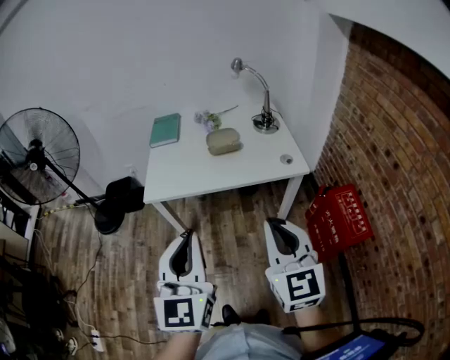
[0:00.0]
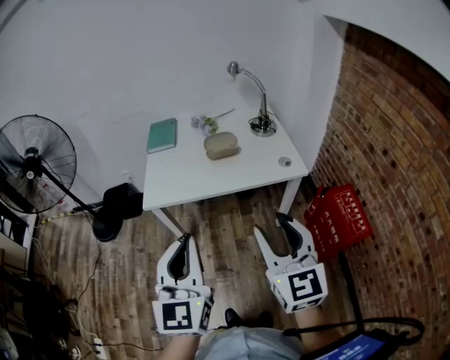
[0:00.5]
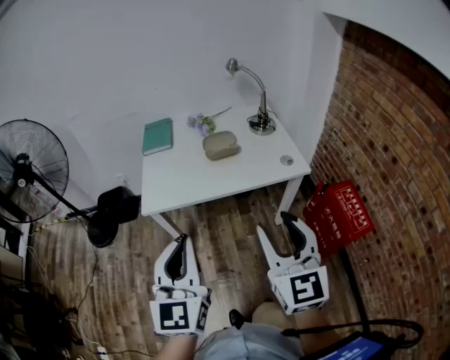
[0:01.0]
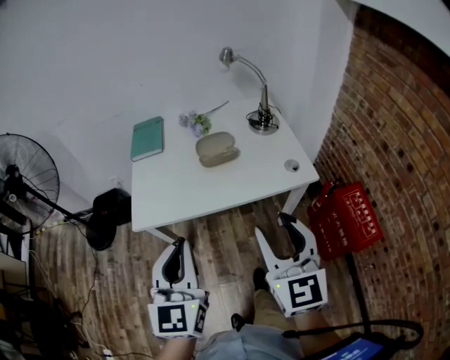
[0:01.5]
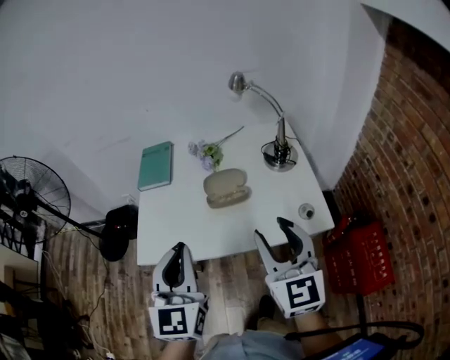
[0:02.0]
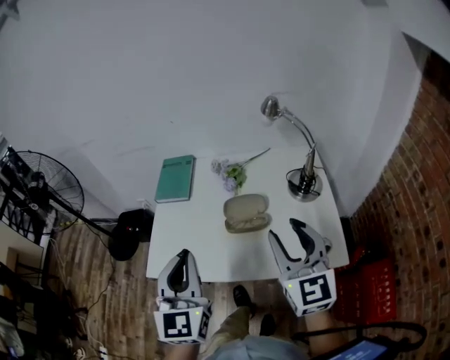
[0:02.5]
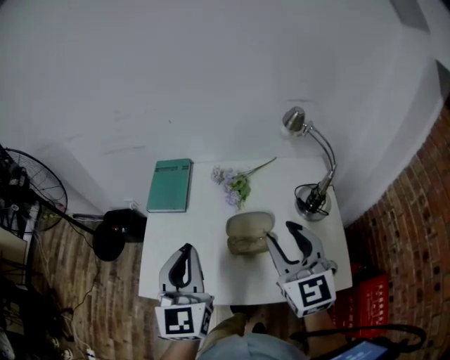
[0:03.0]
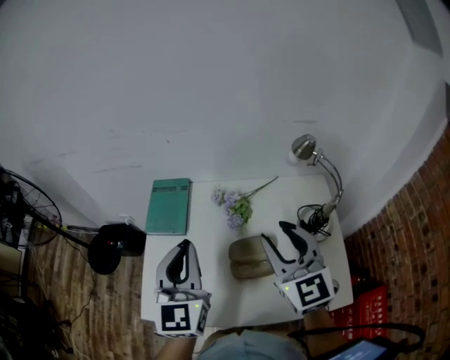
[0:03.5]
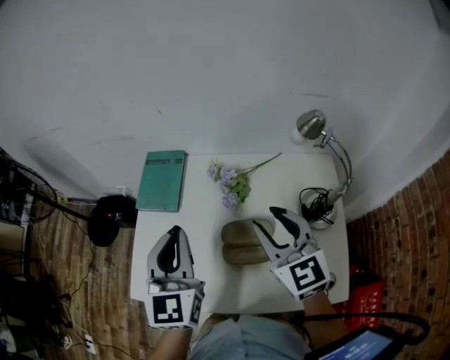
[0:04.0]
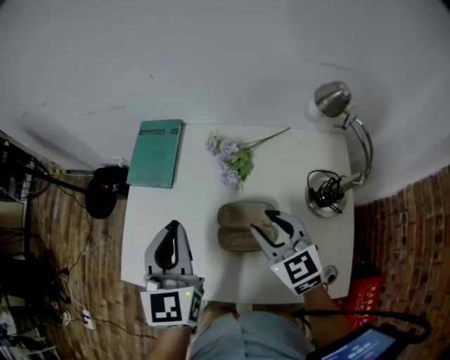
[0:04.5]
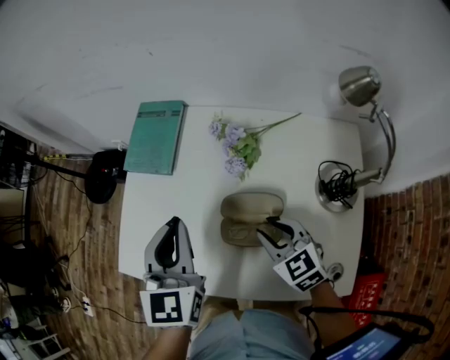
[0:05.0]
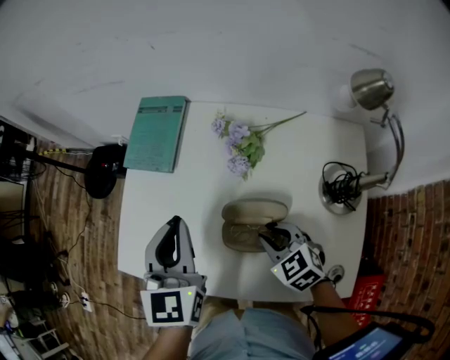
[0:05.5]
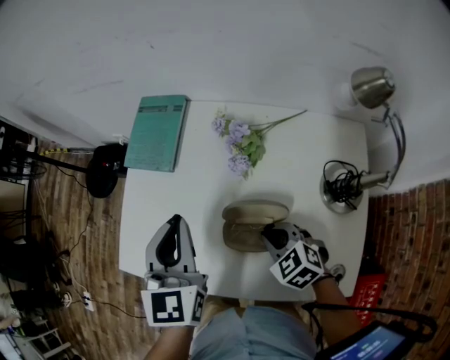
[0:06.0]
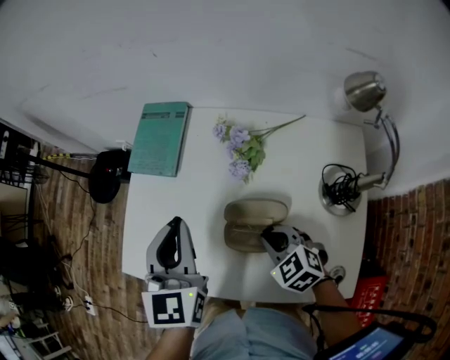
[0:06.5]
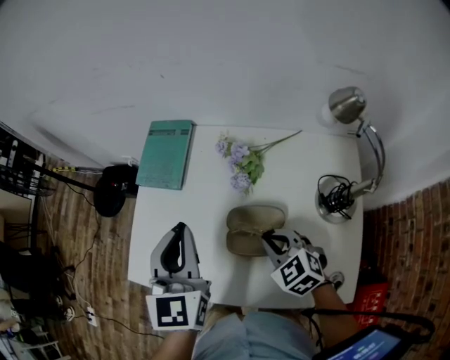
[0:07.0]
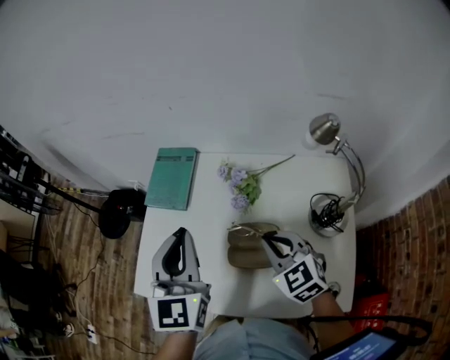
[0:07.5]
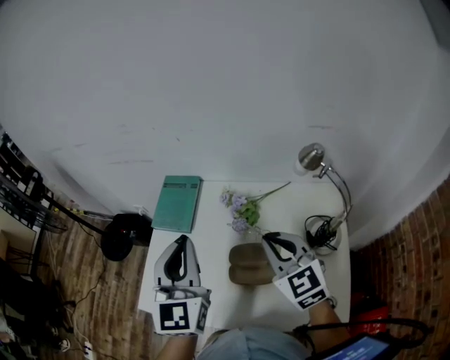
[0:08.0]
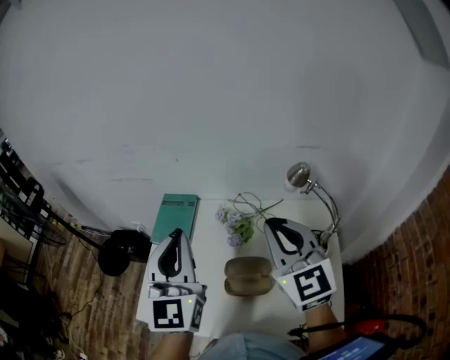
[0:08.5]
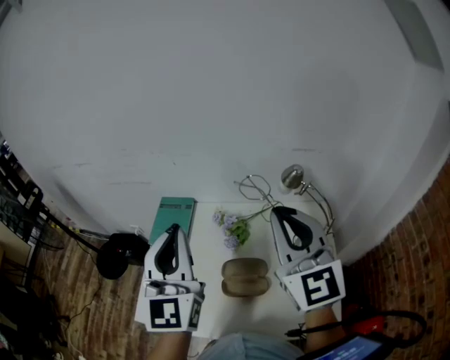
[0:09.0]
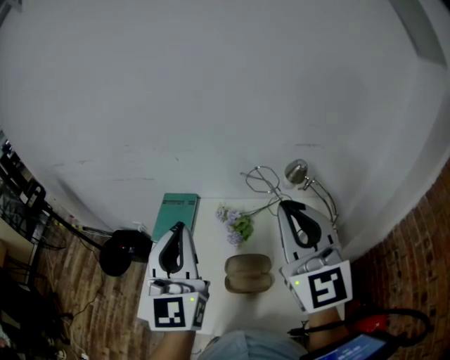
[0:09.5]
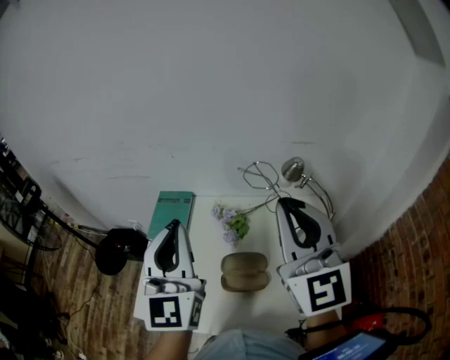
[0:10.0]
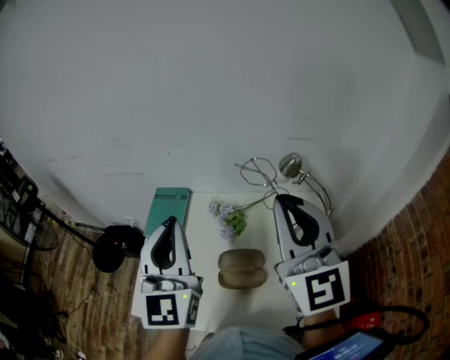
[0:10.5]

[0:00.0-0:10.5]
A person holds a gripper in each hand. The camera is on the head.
0:00.0 to 0:02.0: Both grippers travel together forward, approximately 30 cm. The right gripper opens up.
0:02.0 to 0:04.0: The two grippers go some 30 cm forward. The right gripper swivels approximately 20 degrees.
0:04.0 to 0:06.5: The right gripper is displaced downward by approximately 20 cm, tips its fingers downward by about 40 degrees, and closes. Meanwhile the left gripper moves downward, about 5 cm.
0:06.5 to 0:08.5: The left gripper moves upward, some 20 cm, and changes its angle by approximately 30 degrees; the right gripper is displaced upward by roughly 35 cm, and tilts its fingers approximately 50 degrees upward.
0:08.5 to 0:10.5: The right gripper goes roughly 10 cm upward.

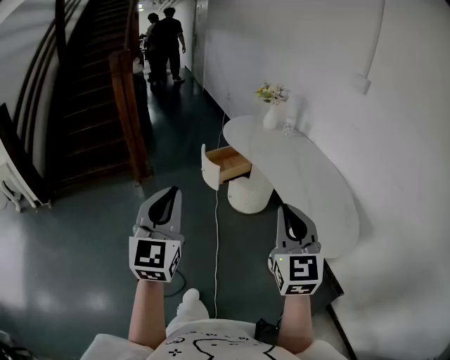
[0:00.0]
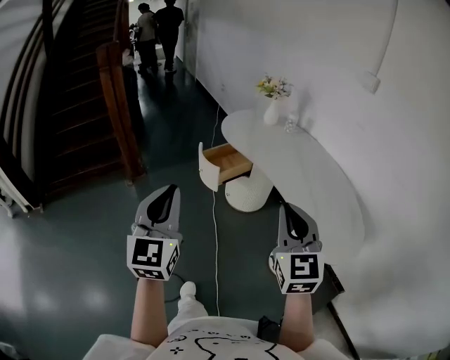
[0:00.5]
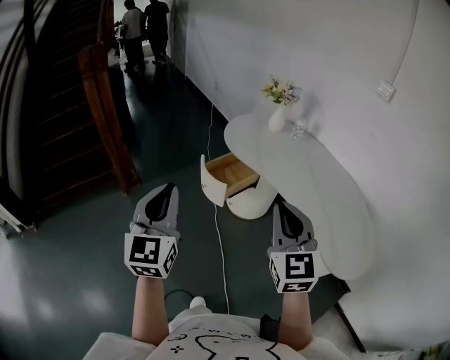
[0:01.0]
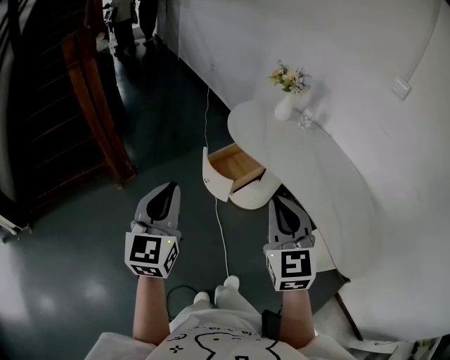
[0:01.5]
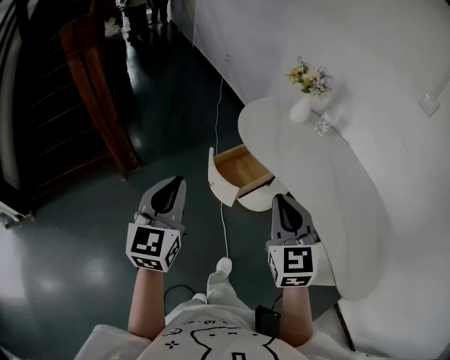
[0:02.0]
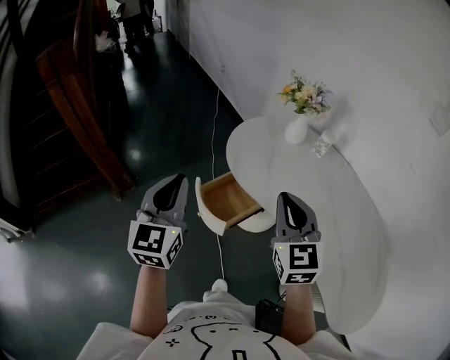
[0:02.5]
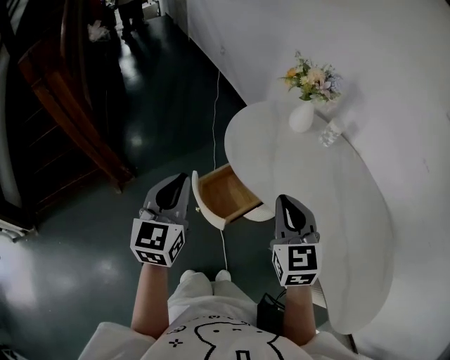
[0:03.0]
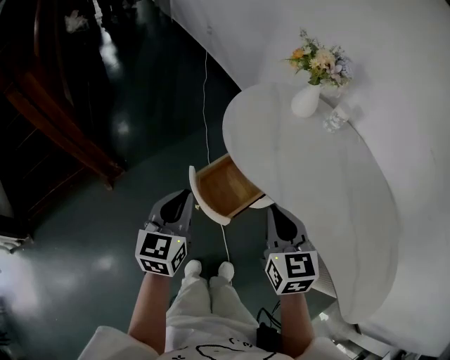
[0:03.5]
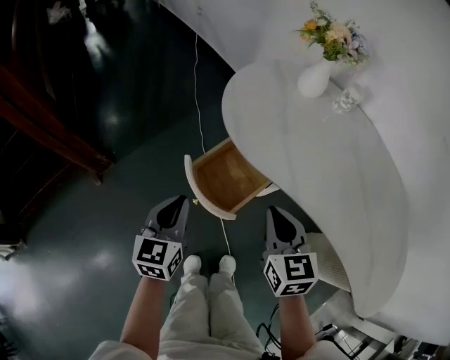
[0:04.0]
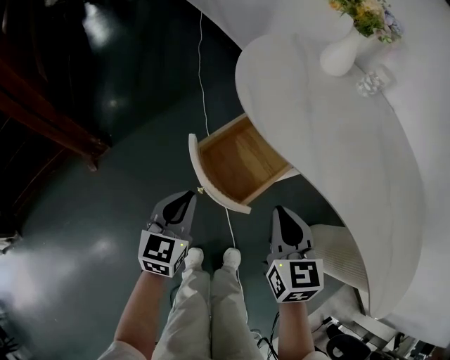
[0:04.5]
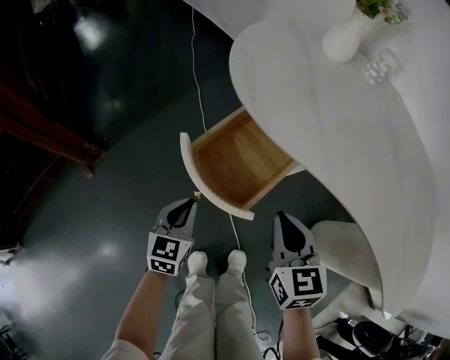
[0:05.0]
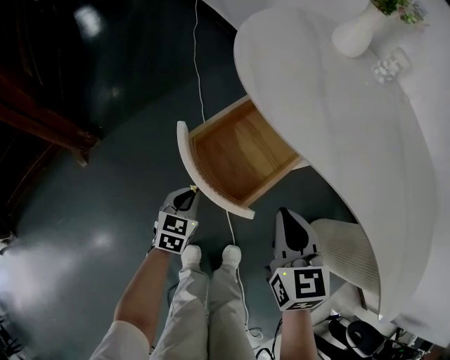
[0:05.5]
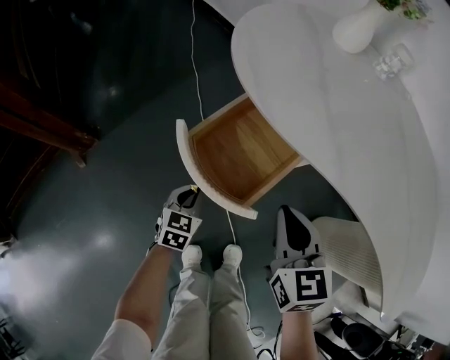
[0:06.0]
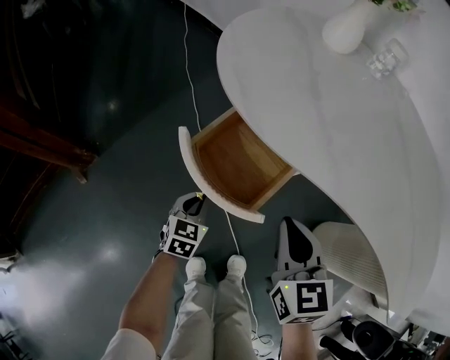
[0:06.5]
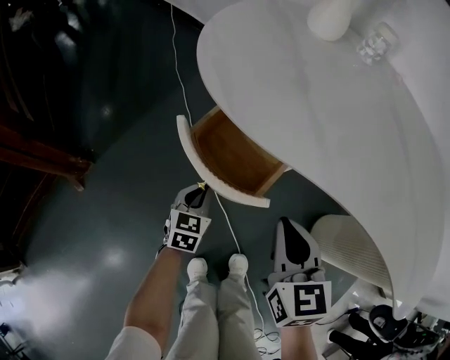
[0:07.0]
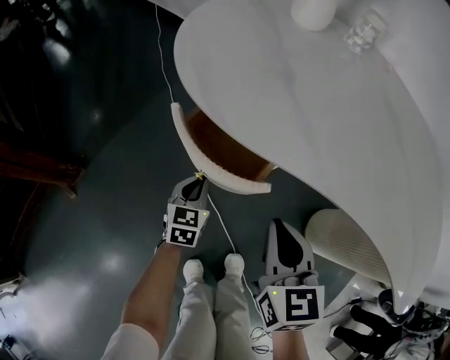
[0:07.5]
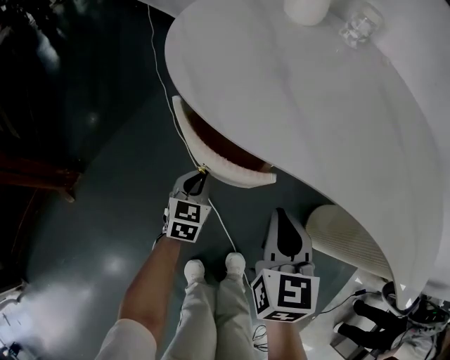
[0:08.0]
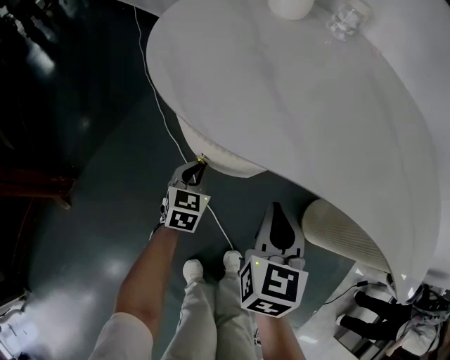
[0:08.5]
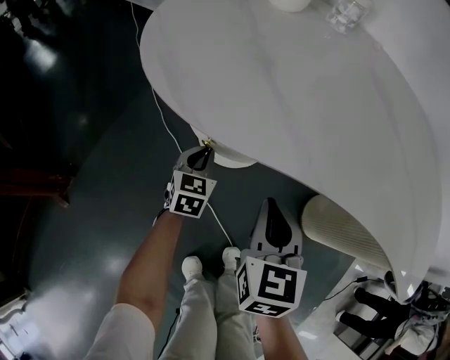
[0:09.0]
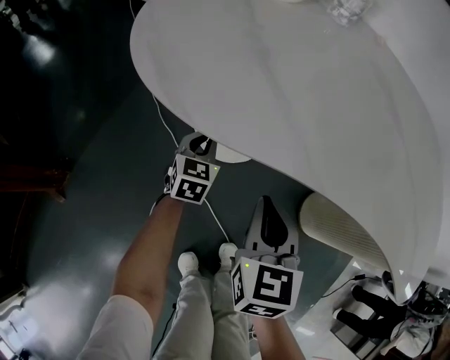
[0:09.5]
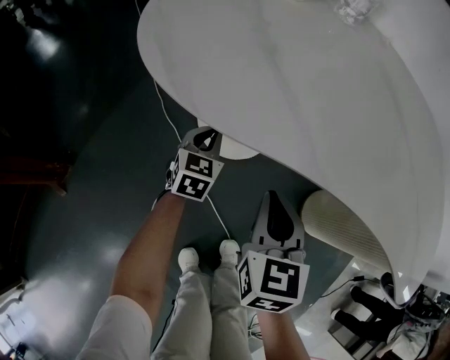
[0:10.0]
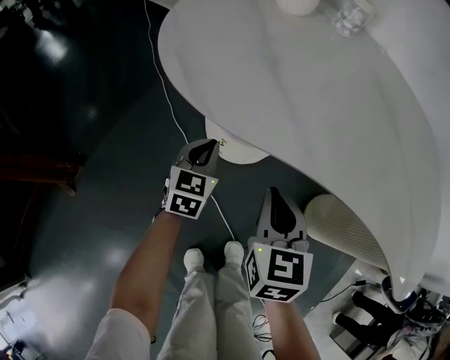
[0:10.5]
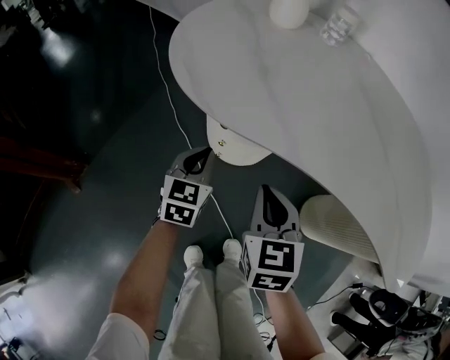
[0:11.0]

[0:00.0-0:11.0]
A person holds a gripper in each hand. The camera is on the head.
0:00.0 to 0:02.0: The two grippers travel together, forward and to the left, some 40 cm.
0:02.0 to 0:03.5: Both grippers travel together forward and downward, roughly 25 cm. The right gripper rotates about 20 degrees.
0:03.5 to 0:05.5: The right gripper goes roughly 25 cm downward; the left gripper travels downward by roughly 40 cm, and rotates about 20 degrees.
0:05.5 to 0:07.5: The left gripper shifts approximately 15 cm forward and to the right.
0:07.5 to 0:09.0: The left gripper moves forward, roughly 10 cm.
0:09.0 to 0:11.0: The left gripper heads upward and backward, covering some 15 cm, while the right gripper shifts by some 5 cm.

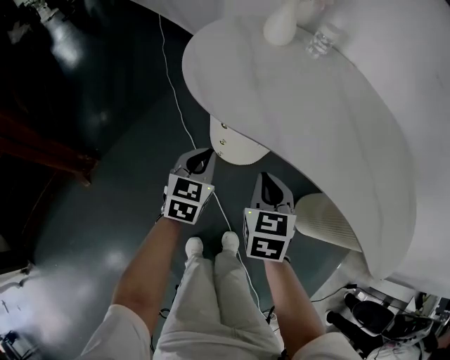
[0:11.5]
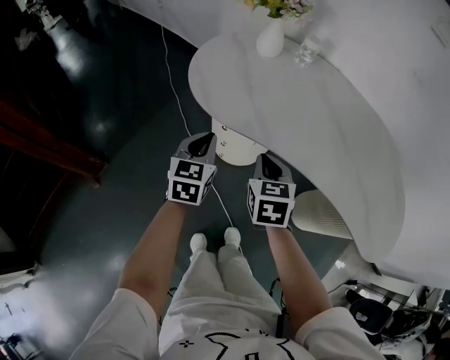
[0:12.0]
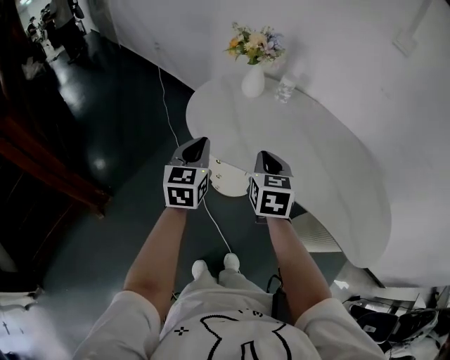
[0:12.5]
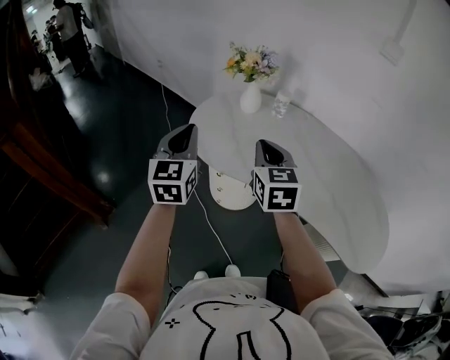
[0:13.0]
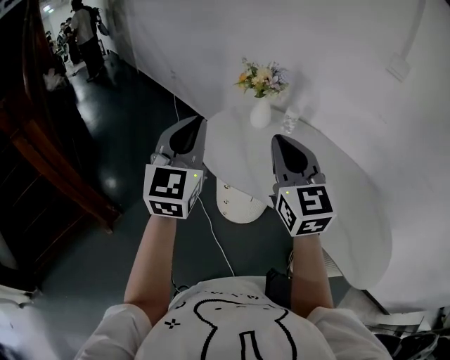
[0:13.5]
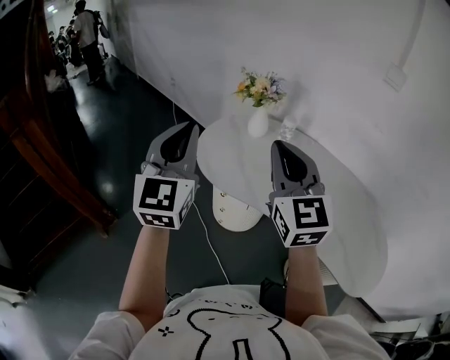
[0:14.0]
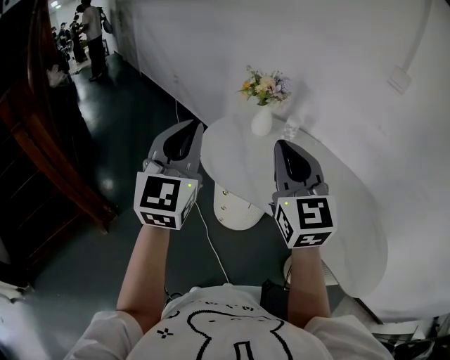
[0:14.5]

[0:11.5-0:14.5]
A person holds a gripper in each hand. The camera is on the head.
0:11.5 to 0:13.0: Both grippers travel together upward, approximately 30 cm. The right gripper rotates approximately 20 degrees. The left gripper turns by some 30 degrees.
0:13.0 to 0:14.5: The two grippers go approximately 15 cm upward and backward. The right gripper changes its angle by roughly 30 degrees.

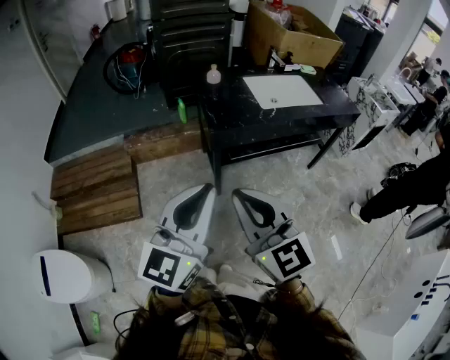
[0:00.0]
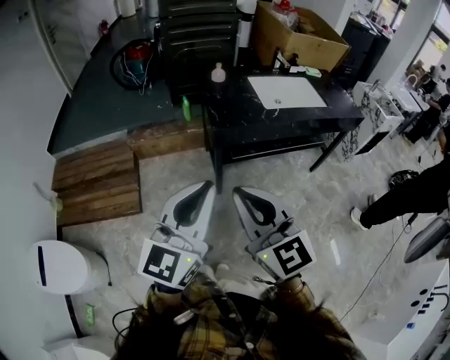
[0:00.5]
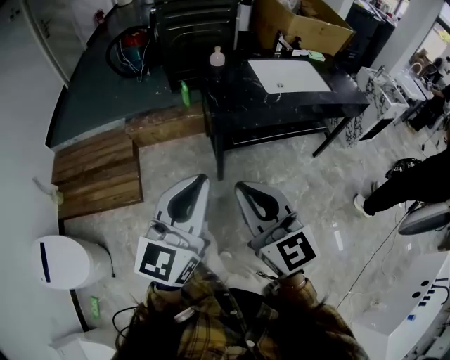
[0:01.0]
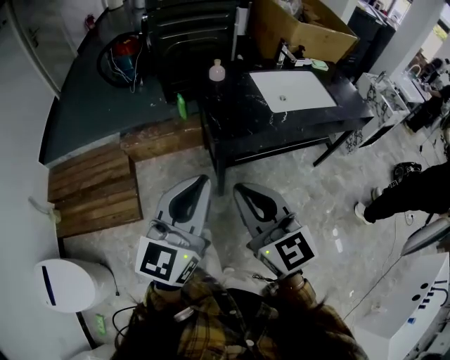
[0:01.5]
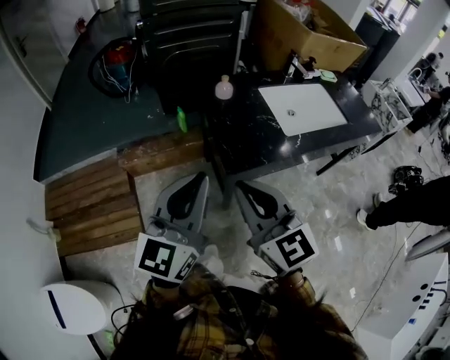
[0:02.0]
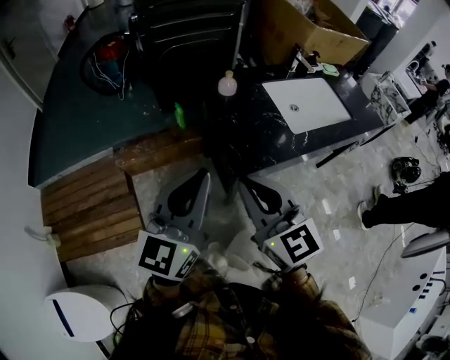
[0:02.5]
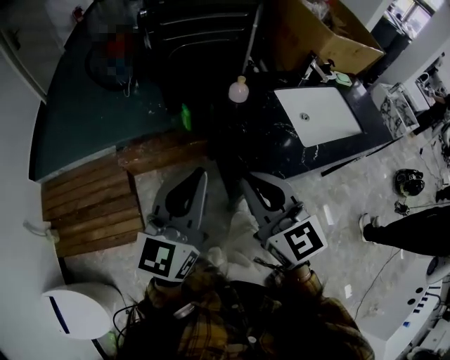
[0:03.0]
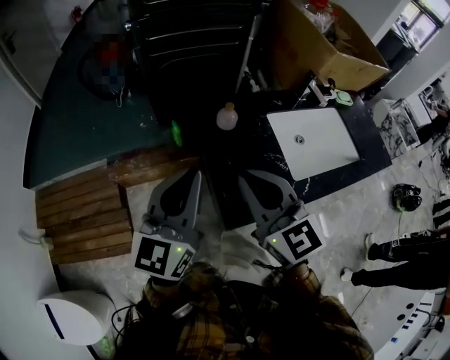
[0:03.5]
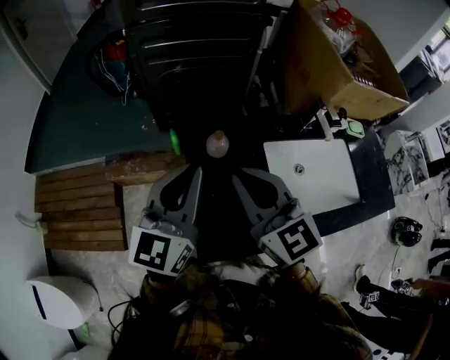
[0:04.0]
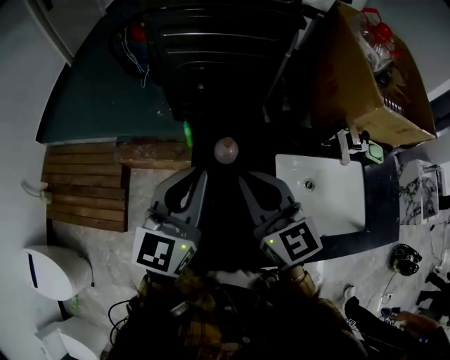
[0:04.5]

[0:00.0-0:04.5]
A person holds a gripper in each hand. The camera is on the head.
0:00.0 to 0:02.0: The two grippers go about 25 cm forward.
0:02.0 to 0:04.5: Both grippers move forward, approximately 35 cm. The left gripper rotates some 20 degrees.
